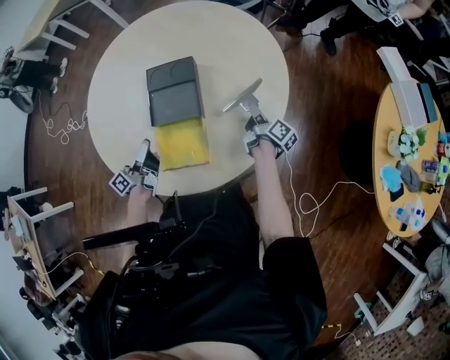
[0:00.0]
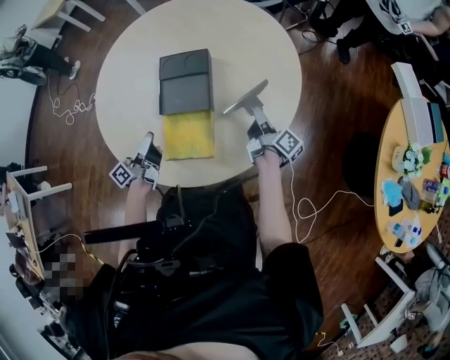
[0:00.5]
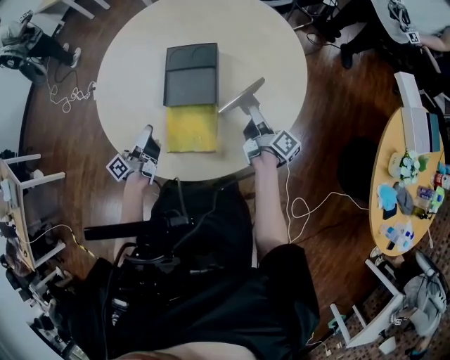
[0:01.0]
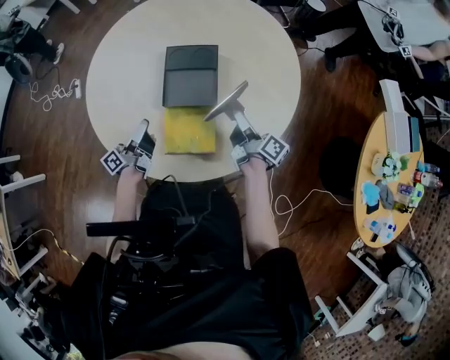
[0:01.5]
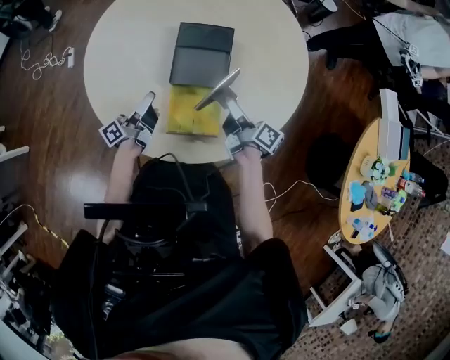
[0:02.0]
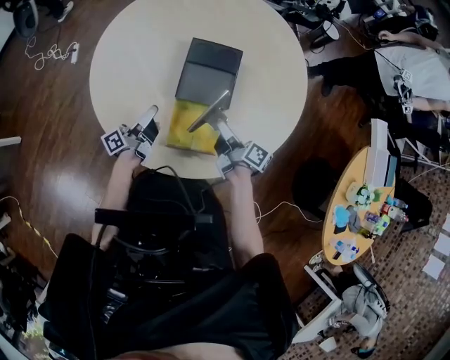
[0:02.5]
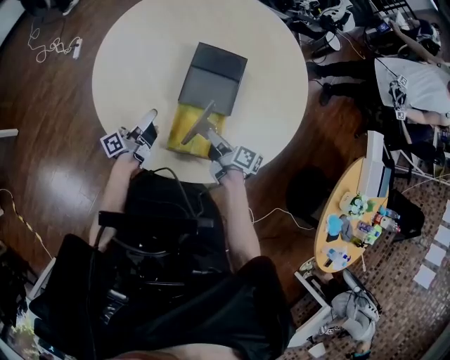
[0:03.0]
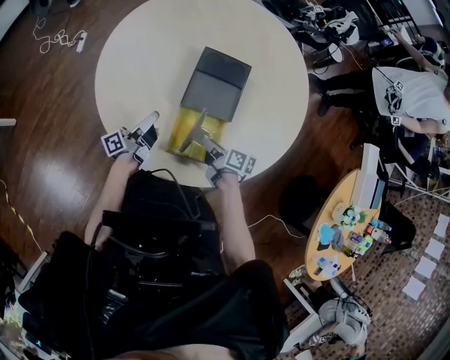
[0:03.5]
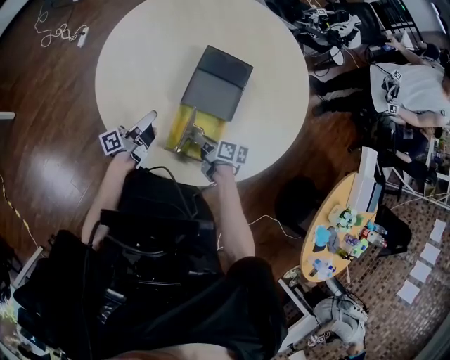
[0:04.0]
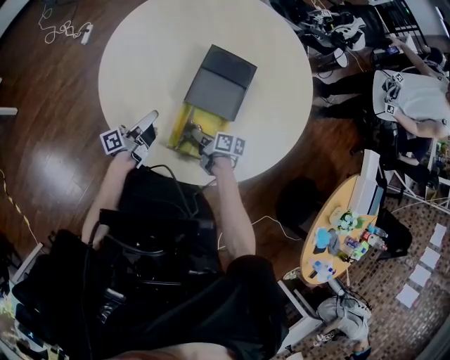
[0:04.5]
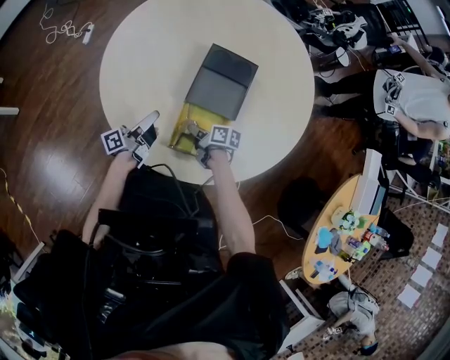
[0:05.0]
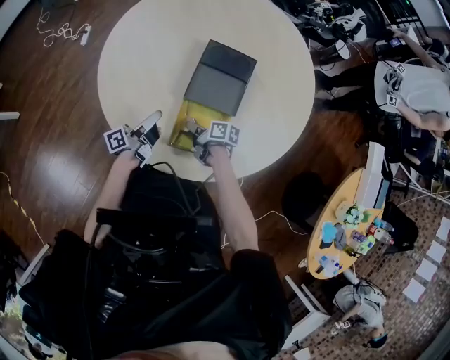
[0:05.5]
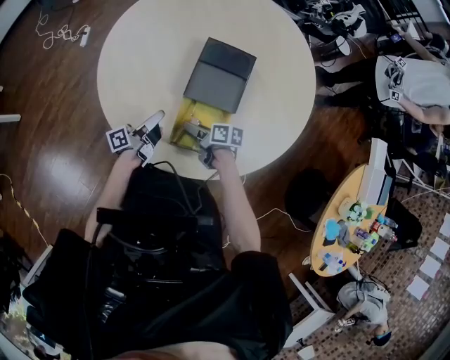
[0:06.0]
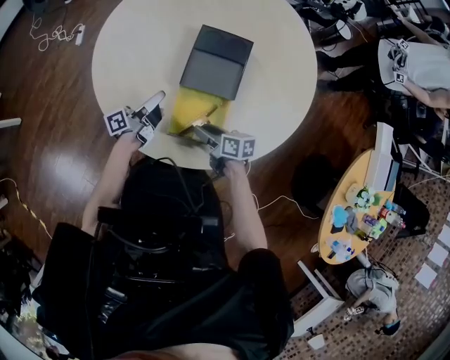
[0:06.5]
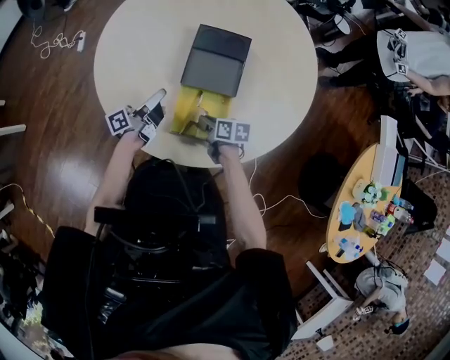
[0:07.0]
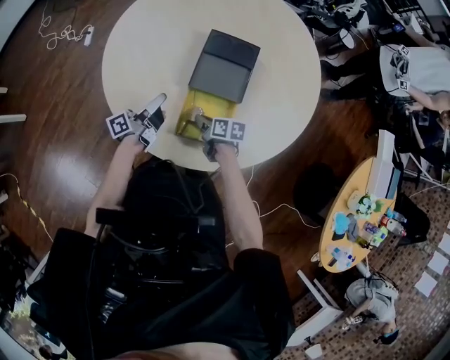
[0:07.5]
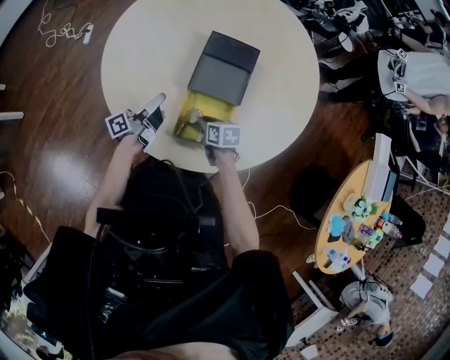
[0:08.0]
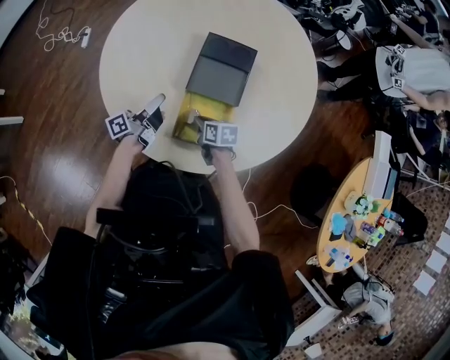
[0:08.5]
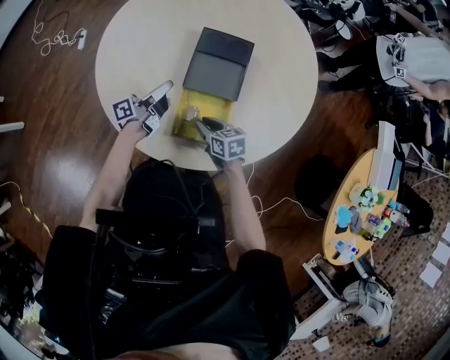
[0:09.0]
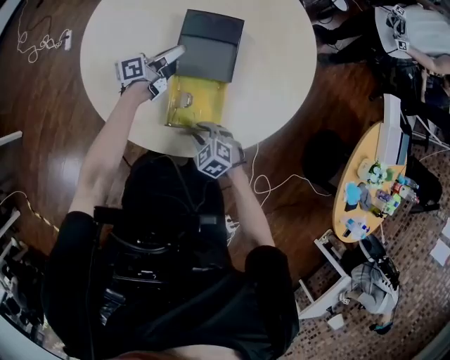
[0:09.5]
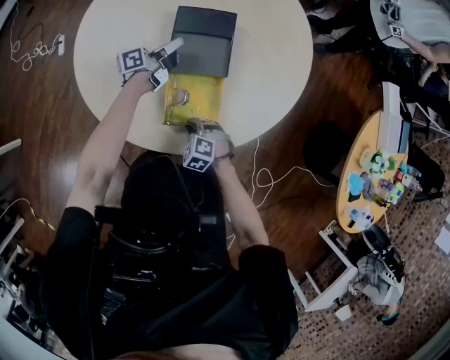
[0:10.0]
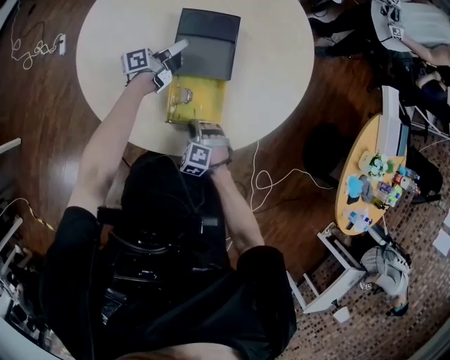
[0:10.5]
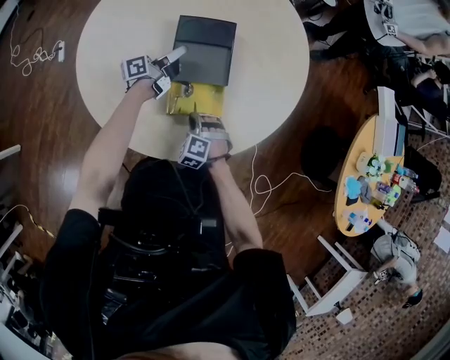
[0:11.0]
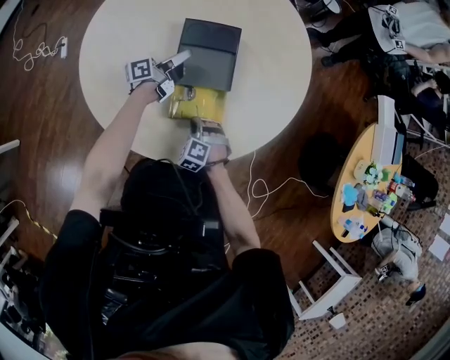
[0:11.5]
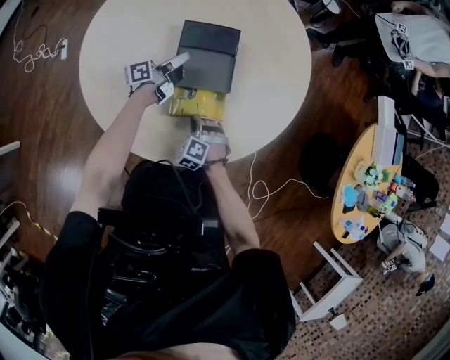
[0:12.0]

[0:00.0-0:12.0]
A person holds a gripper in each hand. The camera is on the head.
0:00.0 to 0:02.0: The right gripper ends up roughly 20 cm from where it was, and rotates approximately 20 degrees.
0:02.0 to 0:04.0: The right gripper heads downward, covering some 10 cm, and swivels approximately 40 degrees.
0:04.0 to 0:06.0: The right gripper opens its fingers.
0:06.0 to 0:08.0: The right gripper changes its angle by approximately 30 degrees, and closes up.
0:08.0 to 0:10.0: The right gripper ends up roughly 10 cm from where it was, and rotates around the line of its fingers by approximately 60 degrees, counterclockwise from behind.
0:10.0 to 0:12.0: The right gripper ends up some 10 cm from where it was.

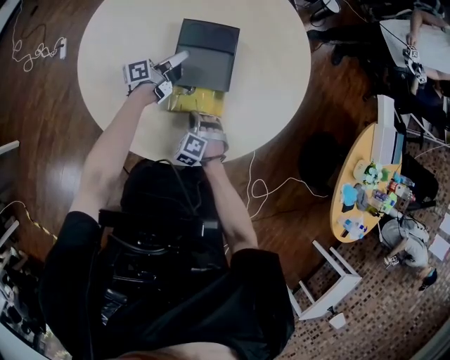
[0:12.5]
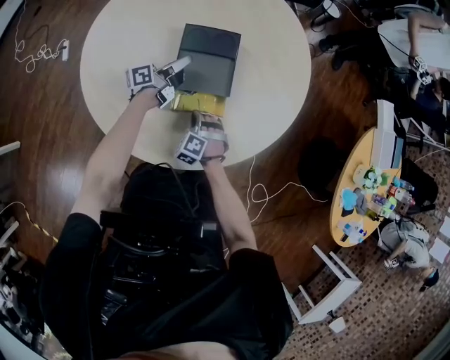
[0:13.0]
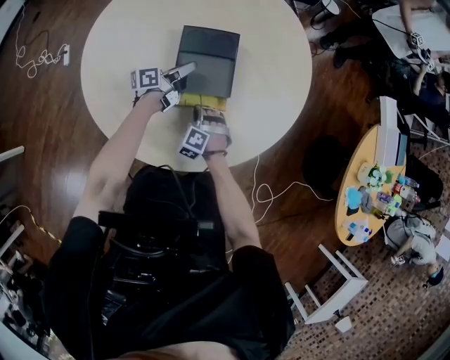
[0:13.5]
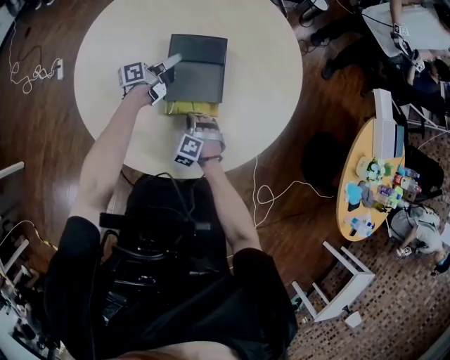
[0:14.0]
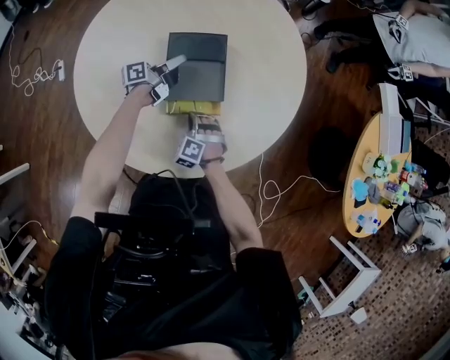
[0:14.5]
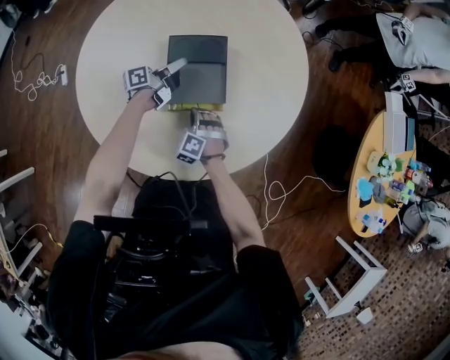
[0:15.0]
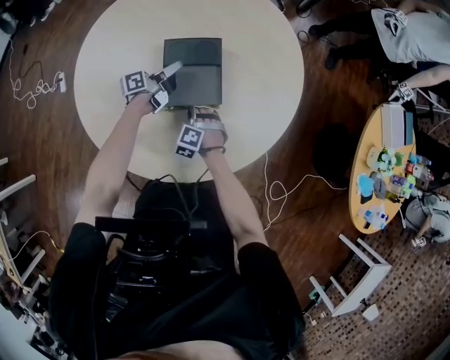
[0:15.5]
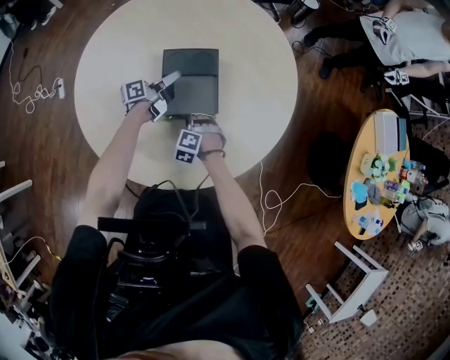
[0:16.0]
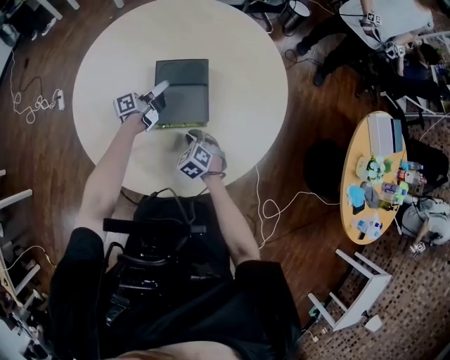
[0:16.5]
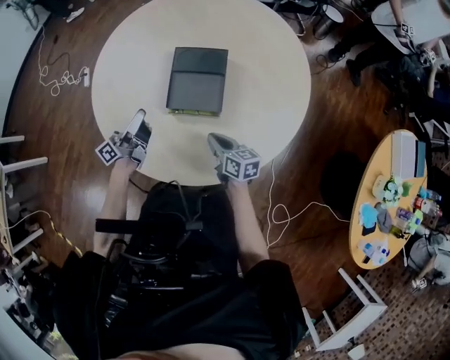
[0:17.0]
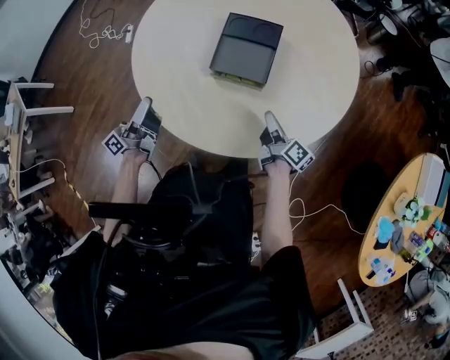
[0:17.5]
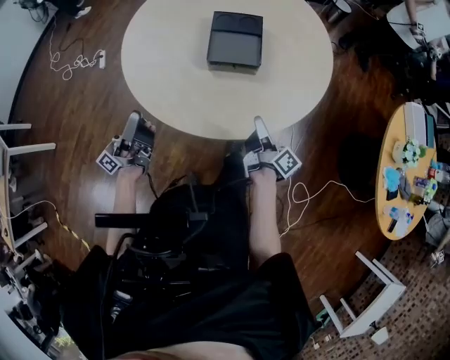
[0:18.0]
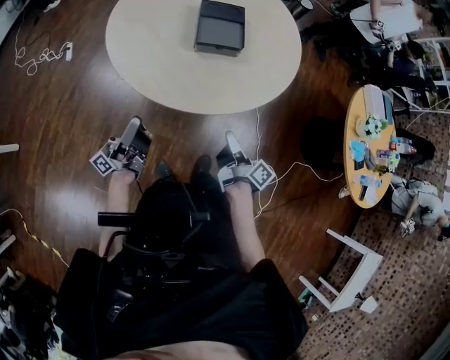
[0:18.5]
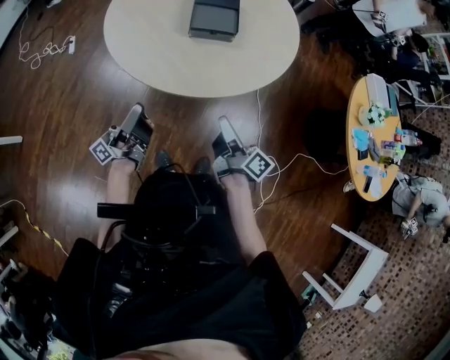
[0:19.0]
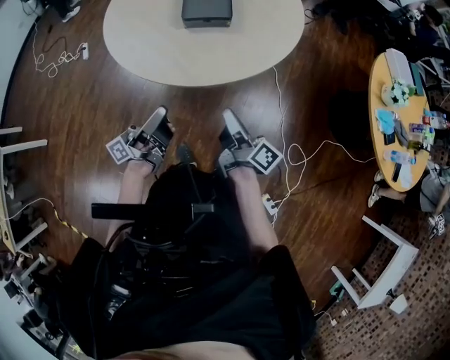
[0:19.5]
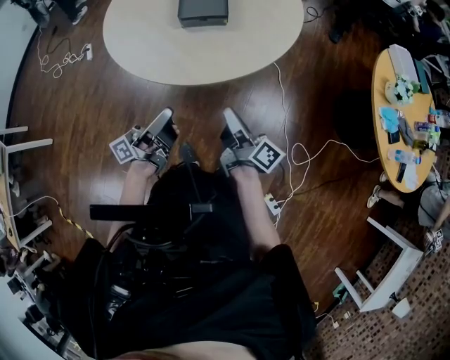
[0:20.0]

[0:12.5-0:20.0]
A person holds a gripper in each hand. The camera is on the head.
0:14.5 to 0:16.5: The right gripper turns by about 30 degrees.
0:16.5 to 0:18.0: The right gripper ends up roughly 20 cm from where it was, and rolls clockwise, seen from behind, by roughly 100 degrees.
0:18.0 to 0:20.0: The right gripper moves roughly 20 cm.

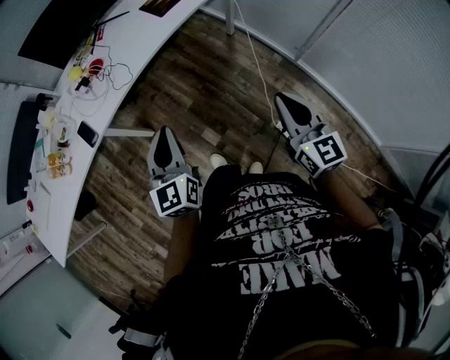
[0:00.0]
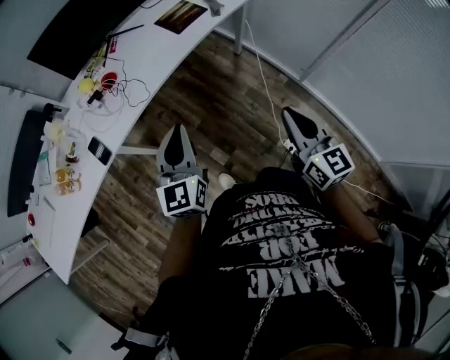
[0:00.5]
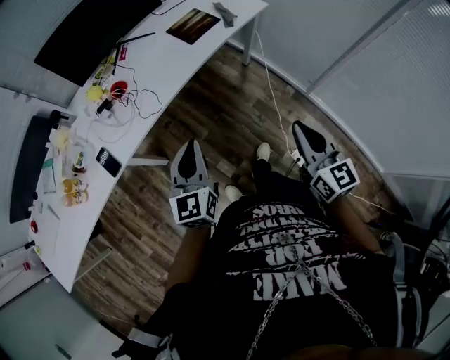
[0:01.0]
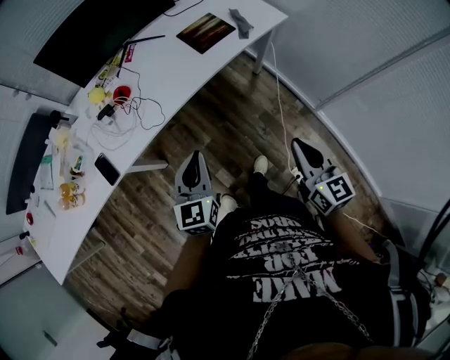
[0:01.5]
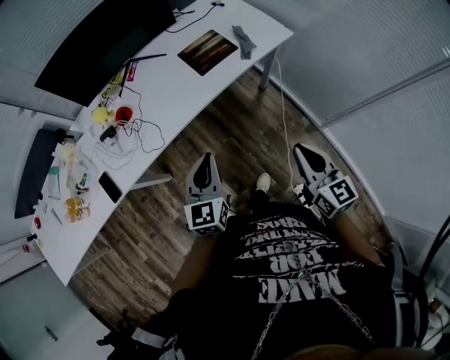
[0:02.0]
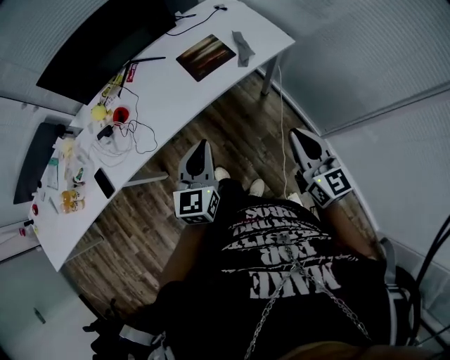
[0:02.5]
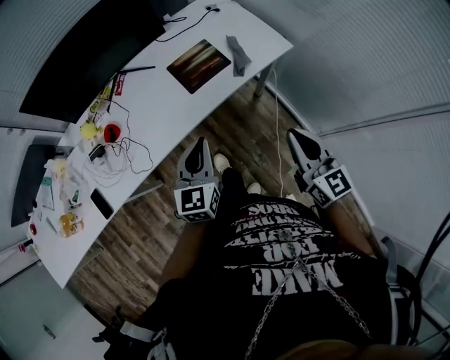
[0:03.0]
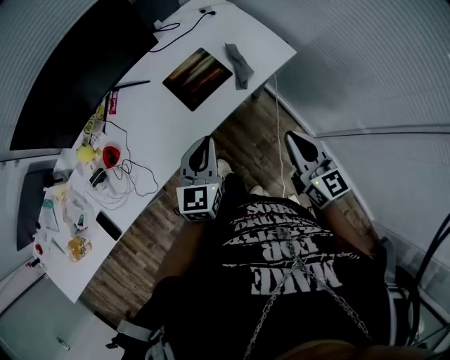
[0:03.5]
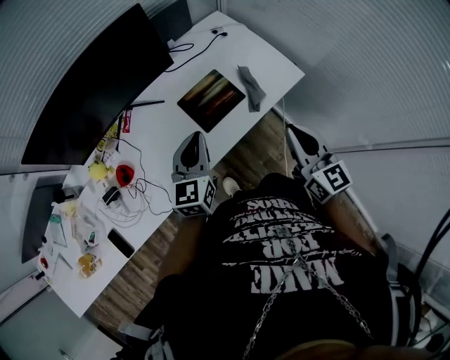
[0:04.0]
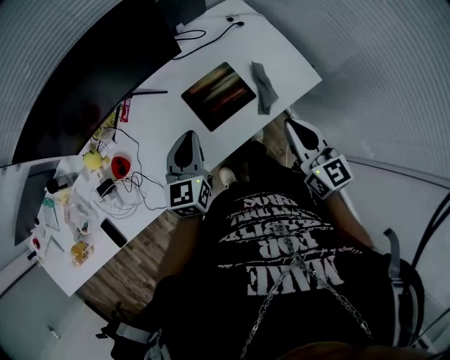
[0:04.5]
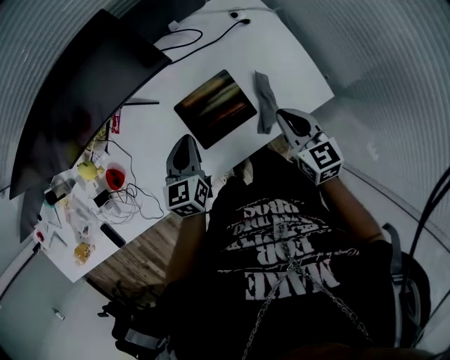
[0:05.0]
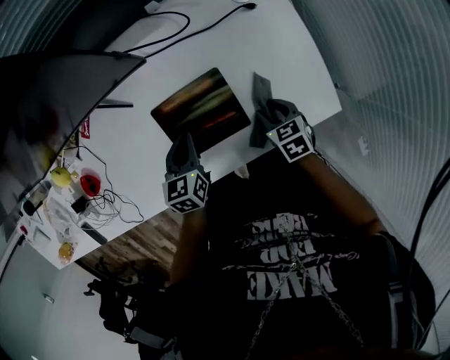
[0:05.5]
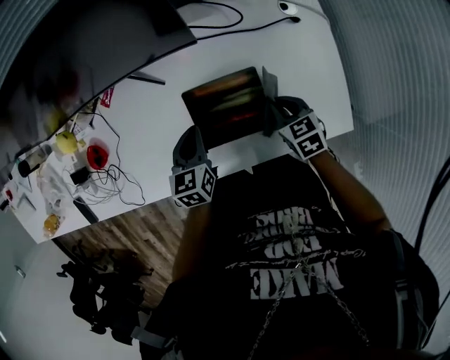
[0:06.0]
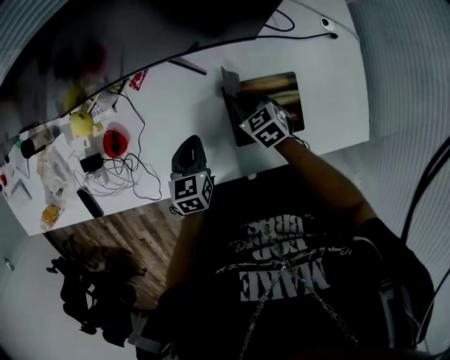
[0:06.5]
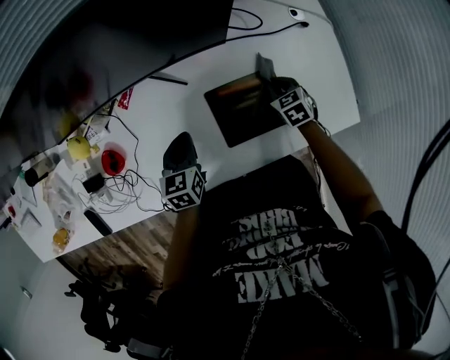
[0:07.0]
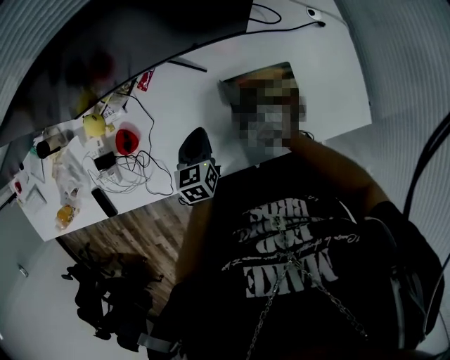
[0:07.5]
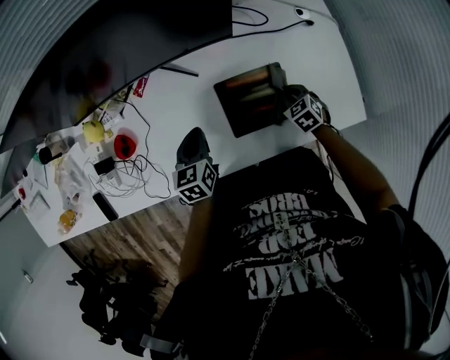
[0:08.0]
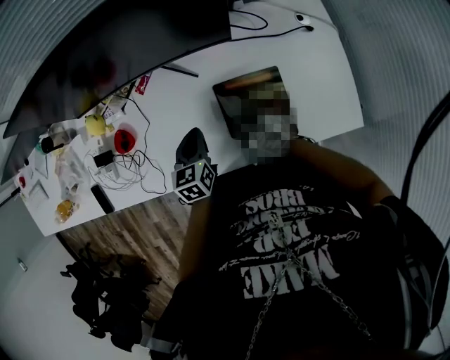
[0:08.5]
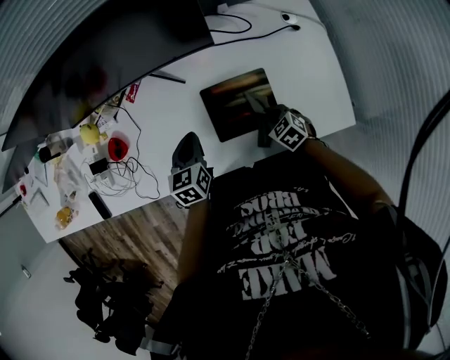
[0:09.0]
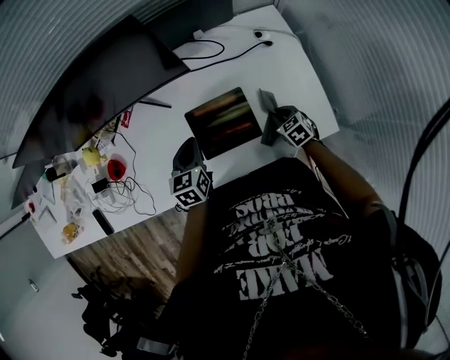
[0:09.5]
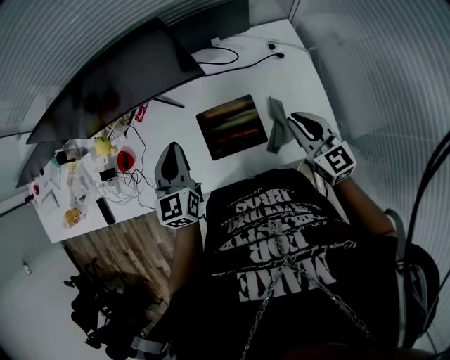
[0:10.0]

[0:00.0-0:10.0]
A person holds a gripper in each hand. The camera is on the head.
0:00.0 to 0:02.0: Both grippers travel together forward, some 25 cm.
0:02.0 to 0:04.0: Both grippers travel together forward, about 35 cm.
0:04.0 to 0:06.0: Both grippers move downward, about 30 cm. The right gripper tips its fingers downward by some 50 degrees, and opens and closes again; the left gripper changes its angle by approximately 40 degrees.
0:06.0 to 0:08.0: The left gripper heads to the left, covering roughly 10 cm; the right gripper goes left and right, roughly 20 cm each way, reversing 3 times.
0:08.0 to 0:10.0: The left gripper heads upward and to the right, covering about 20 cm, and rotates about 30 degrees; the right gripper goes up and down, roughly 25 cm each way, reversing 2 times, and angles its fingers upward, by some 50 degrees.
